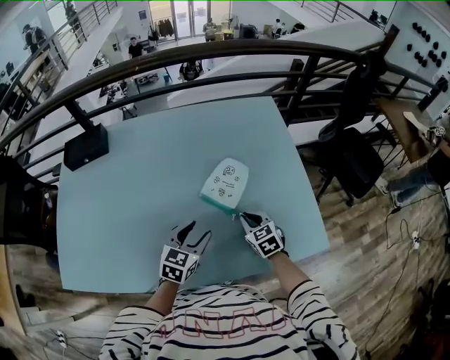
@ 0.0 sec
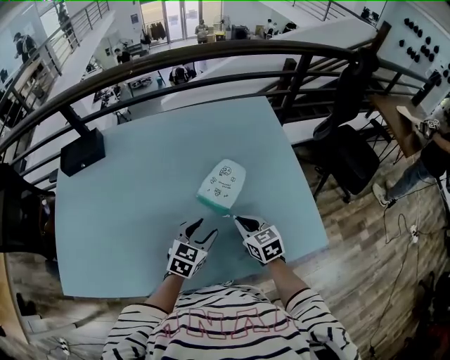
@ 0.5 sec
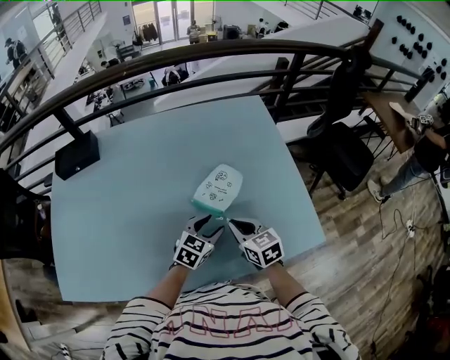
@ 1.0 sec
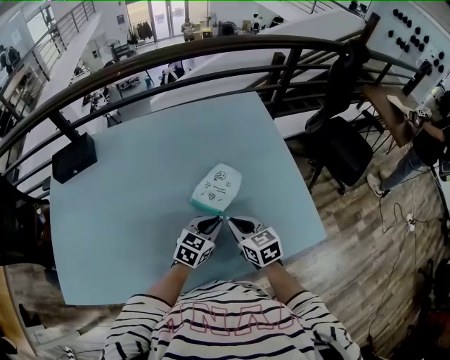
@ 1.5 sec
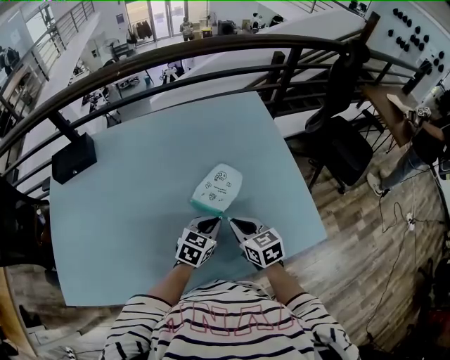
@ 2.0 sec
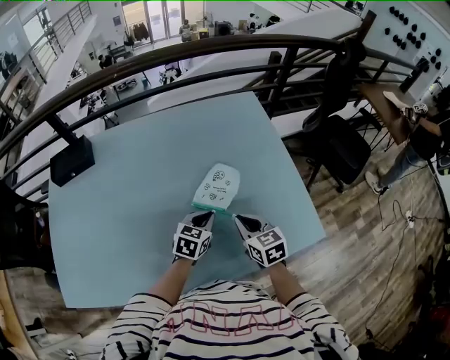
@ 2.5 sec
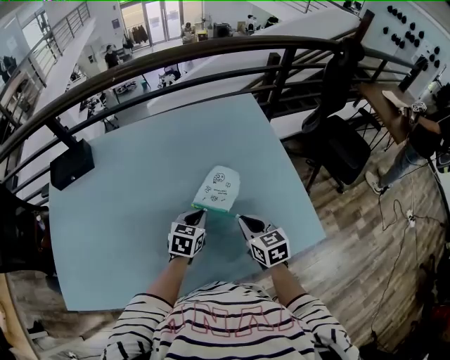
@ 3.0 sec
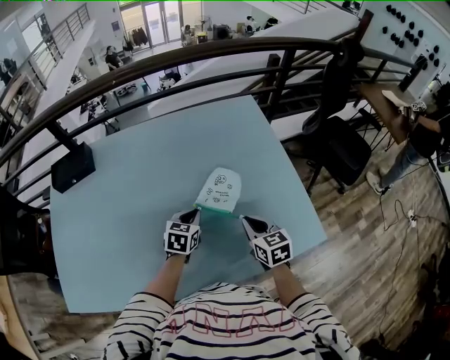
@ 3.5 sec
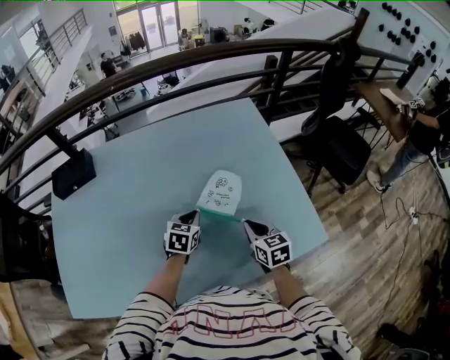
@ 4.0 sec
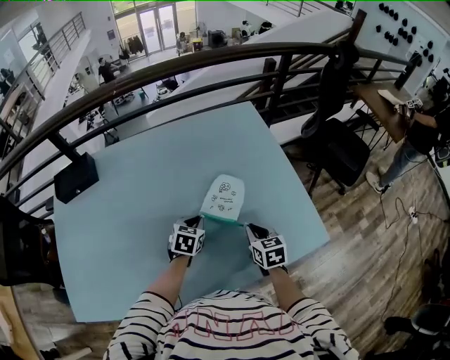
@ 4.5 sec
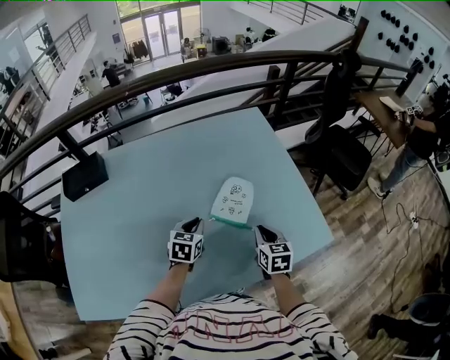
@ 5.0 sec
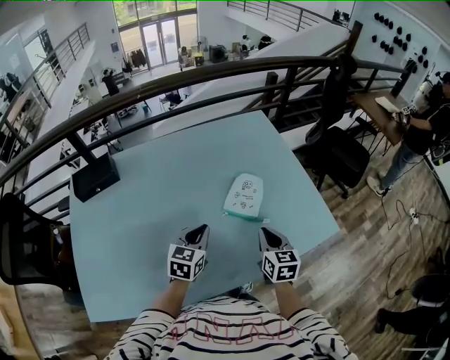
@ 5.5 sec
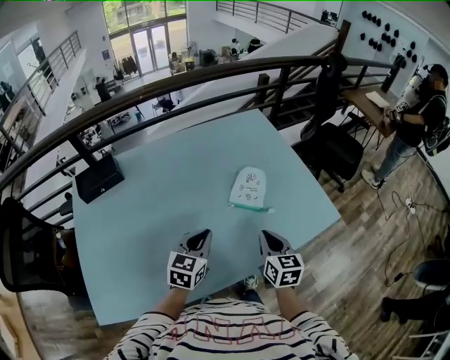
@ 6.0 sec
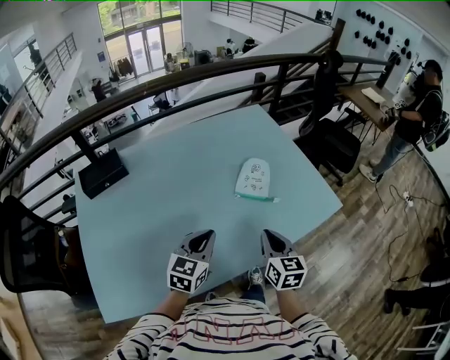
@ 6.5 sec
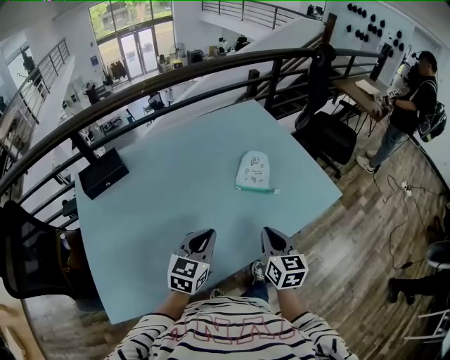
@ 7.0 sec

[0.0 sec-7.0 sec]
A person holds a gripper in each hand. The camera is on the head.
0.0 sec to 2.0 sec: The left gripper heads to the right, covering some 5 cm, and closes; the right gripper travels upward by roughly 5 cm.
2.0 sec to 3.5 sec: The right gripper ends up roughly 5 cm from where it was. Meanwhile the left gripper goes some 10 cm to the left and forward.
3.5 sec to 5.0 sec: The left gripper travels to the left by roughly 5 cm.
5.0 sec to 7.0 sec: The left gripper travels backward and upward by roughly 25 cm, and rotates approximately 30 degrees; the right gripper is displaced backward, to the left and upward by approximately 25 cm.

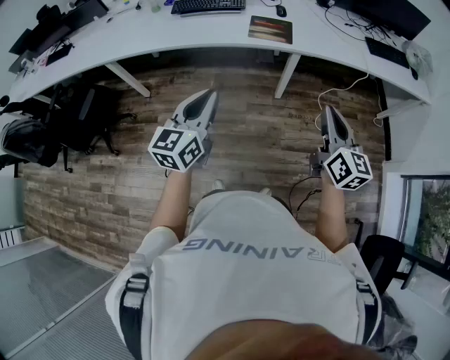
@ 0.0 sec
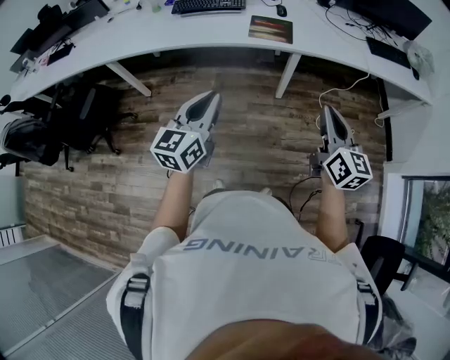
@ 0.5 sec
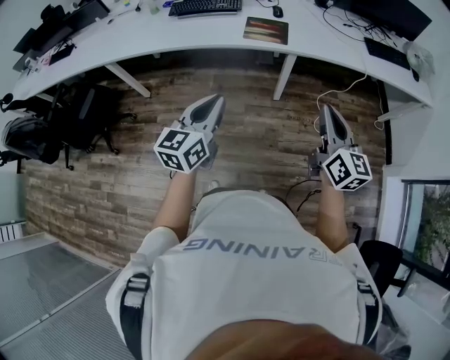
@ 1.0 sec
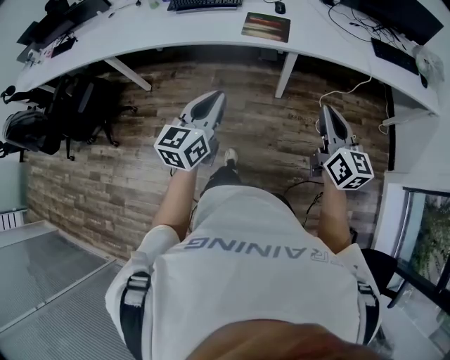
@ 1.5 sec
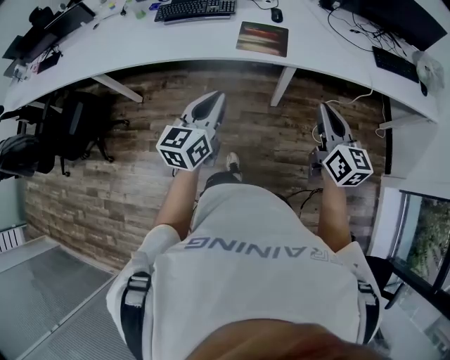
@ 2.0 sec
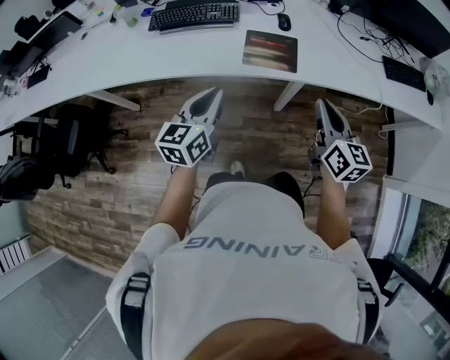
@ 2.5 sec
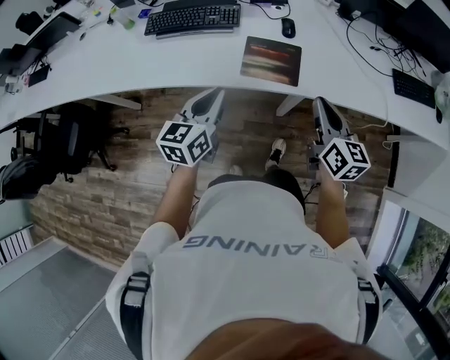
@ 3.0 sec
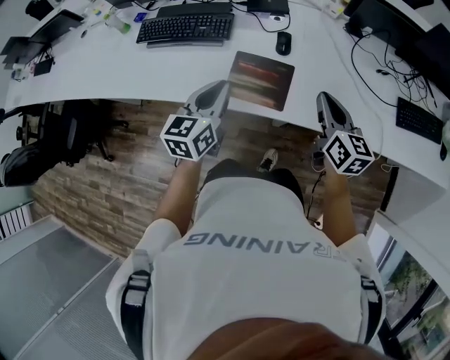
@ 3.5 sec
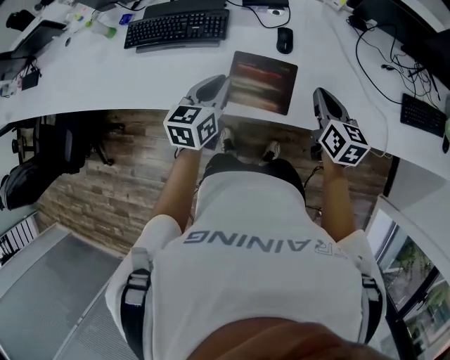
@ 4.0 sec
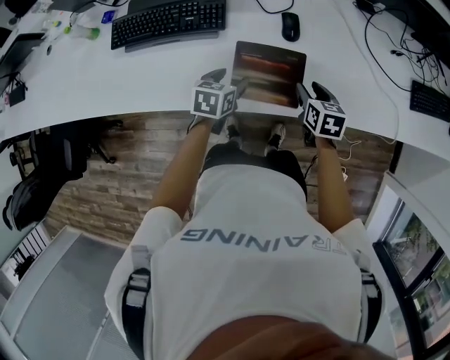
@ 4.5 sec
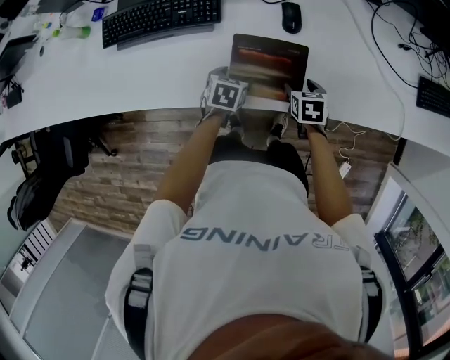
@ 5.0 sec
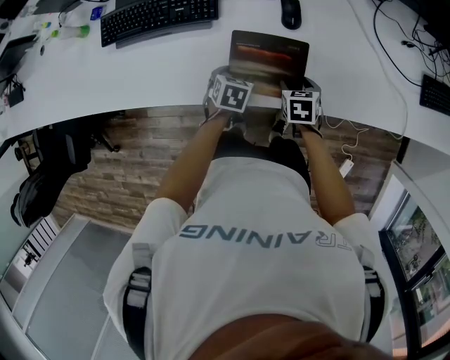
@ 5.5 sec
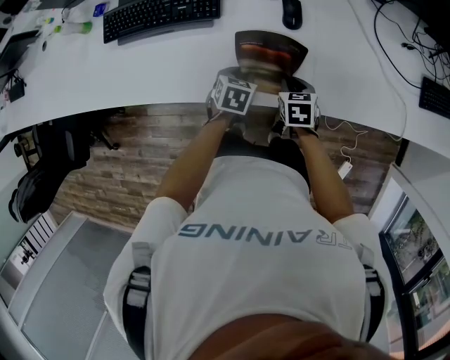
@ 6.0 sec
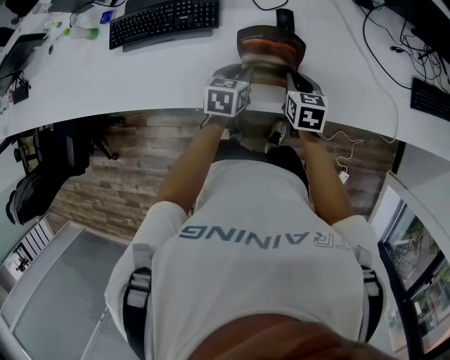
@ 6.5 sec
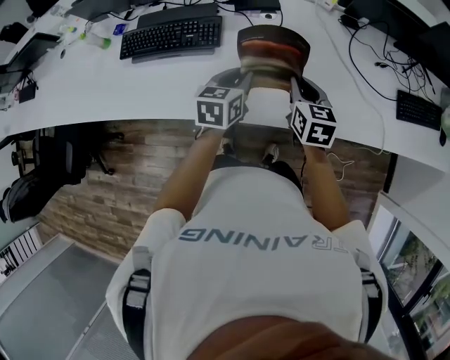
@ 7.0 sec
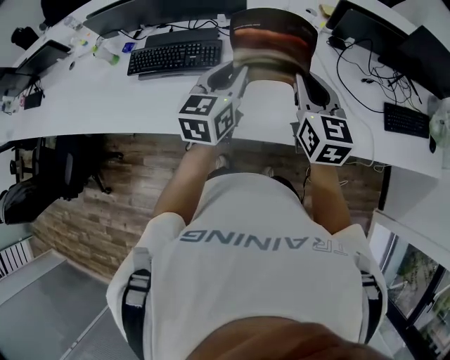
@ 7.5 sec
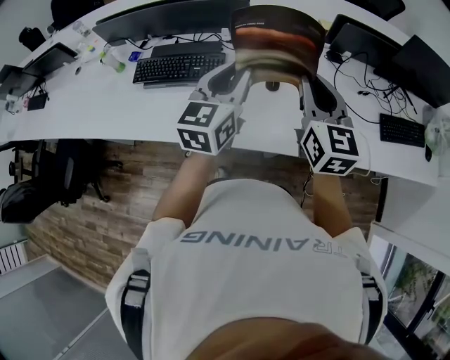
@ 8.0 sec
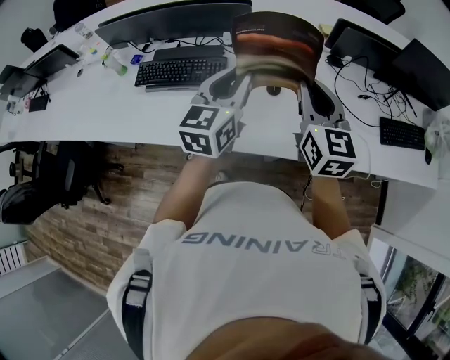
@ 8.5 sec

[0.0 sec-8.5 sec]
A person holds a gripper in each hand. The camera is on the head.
0.0 sec to 2.0 sec: The right gripper moves forward, approximately 20 cm, while the left gripper heads forward and to the right, covering some 20 cm.
2.0 sec to 4.0 sec: Both grippers are carried forward, roughly 40 cm. The right gripper swivels roughly 20 degrees.
4.0 sec to 6.5 sec: The left gripper shifts roughly 15 cm downward, rotates about 20 degrees, and opens, then closes again, while the right gripper goes about 15 cm downward and to the left, turns by roughly 20 degrees, and opens and closes again.
6.5 sec to 8.5 sec: The grippers both shift upward by approximately 35 cm. The left gripper tips its fingers upward by roughly 40 degrees. Meanwhile the right gripper tips its fingers upward by roughly 40 degrees.

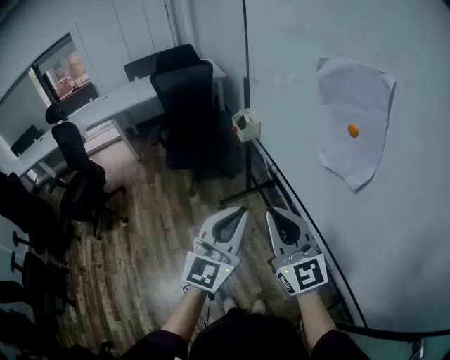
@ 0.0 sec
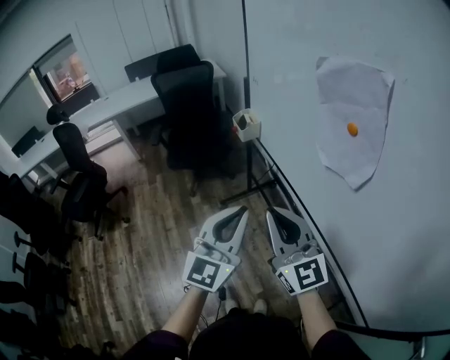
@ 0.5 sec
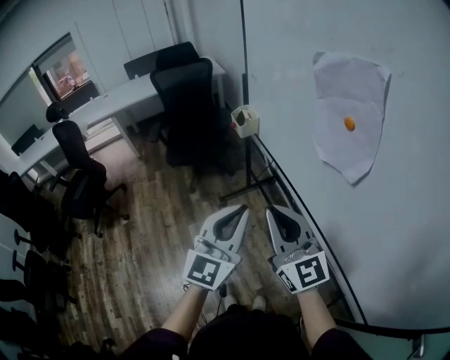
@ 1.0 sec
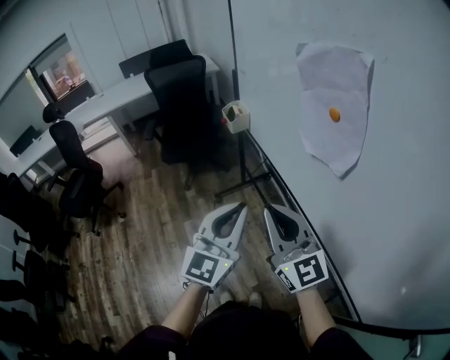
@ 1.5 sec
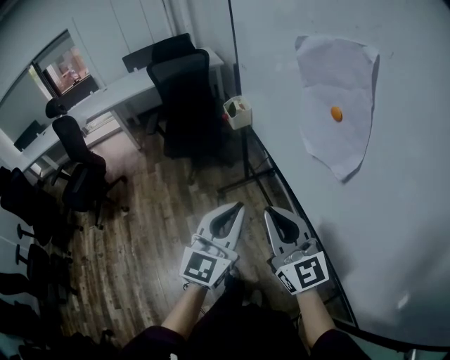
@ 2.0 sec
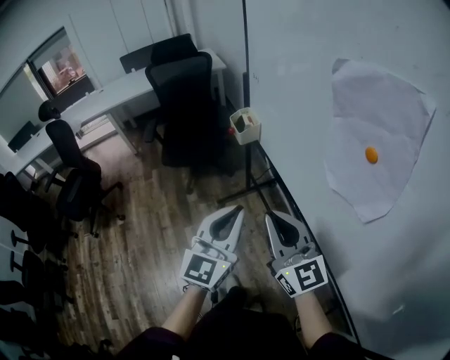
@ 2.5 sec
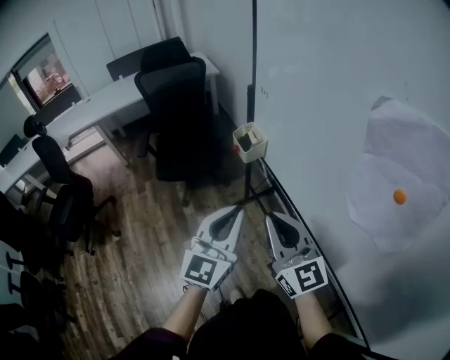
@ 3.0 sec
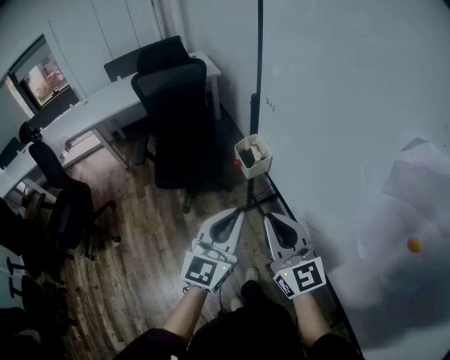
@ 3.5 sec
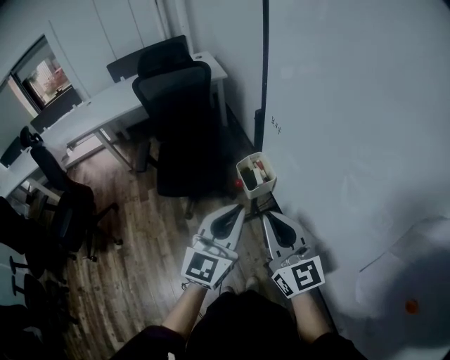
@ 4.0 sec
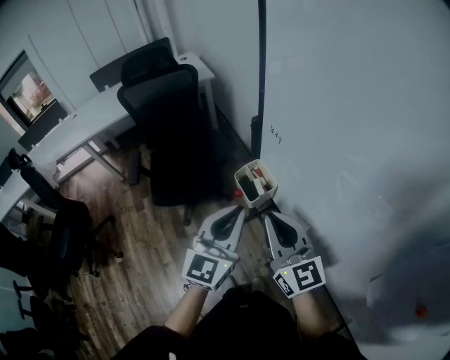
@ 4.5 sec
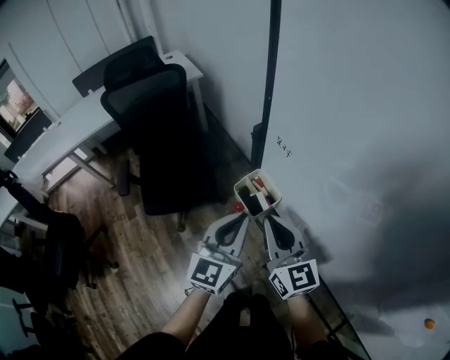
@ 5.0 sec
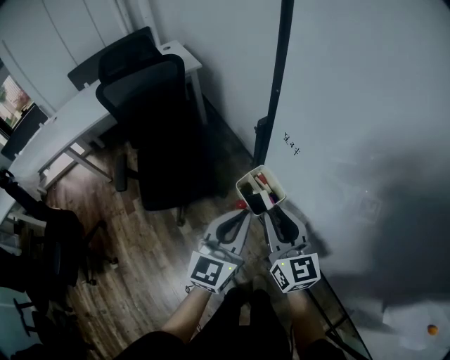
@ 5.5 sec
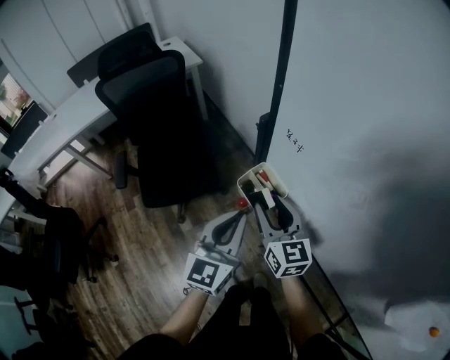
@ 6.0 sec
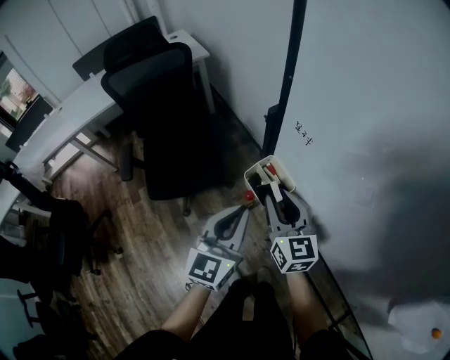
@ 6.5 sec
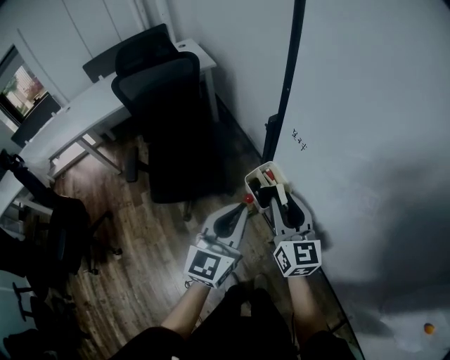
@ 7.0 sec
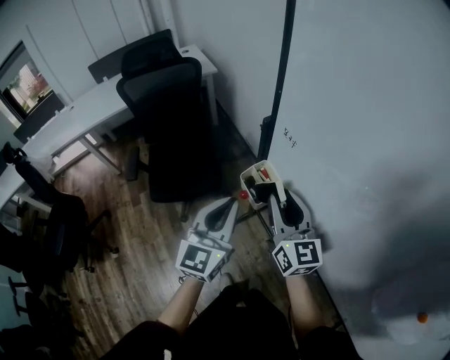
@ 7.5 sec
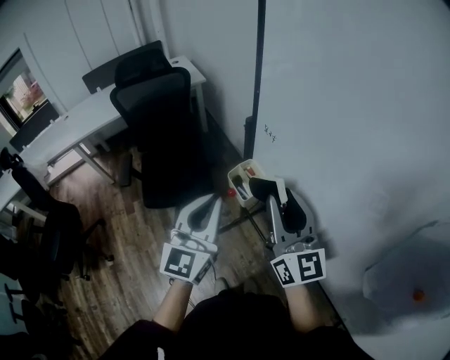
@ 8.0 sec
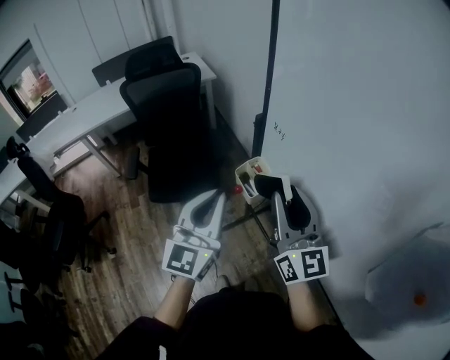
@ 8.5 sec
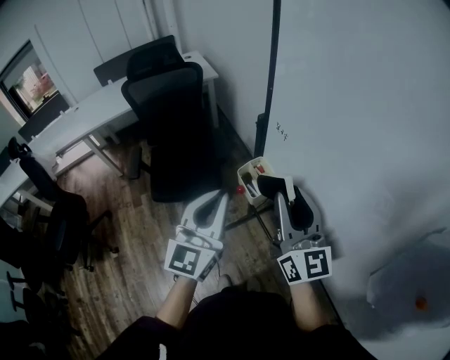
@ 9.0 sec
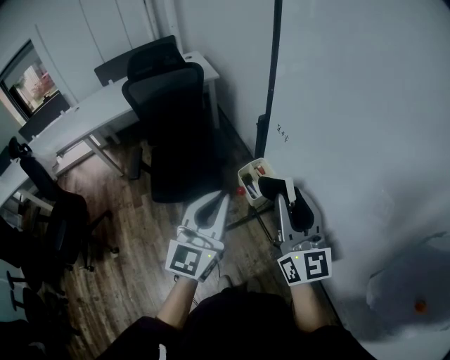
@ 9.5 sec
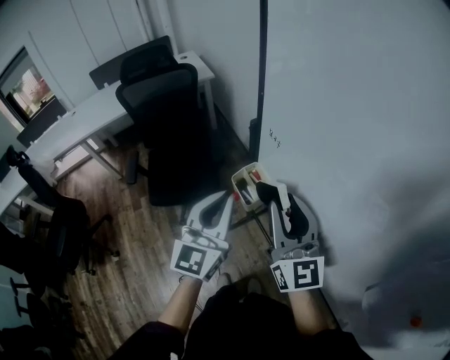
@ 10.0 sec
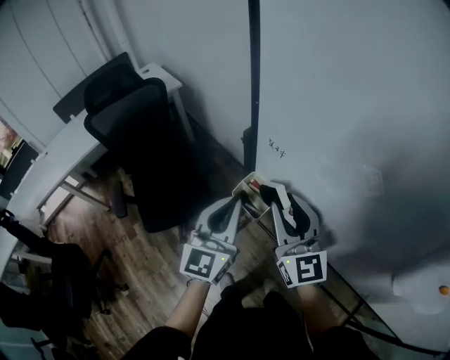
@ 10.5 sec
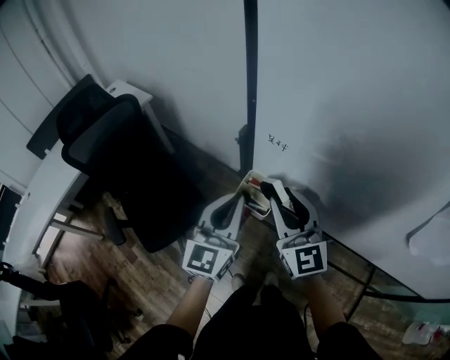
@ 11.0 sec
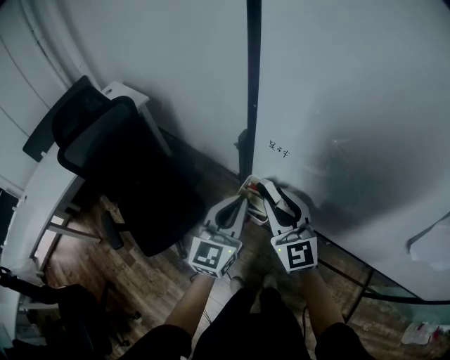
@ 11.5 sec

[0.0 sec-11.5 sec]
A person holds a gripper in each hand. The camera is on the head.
0.0 sec to 2.0 sec: The grippers both shift to the right by about 5 cm.
2.0 sec to 4.0 sec: The grippers both shift forward by approximately 40 cm.
4.0 sec to 6.0 sec: The right gripper is displaced forward and downward by approximately 20 cm, rotates some 20 degrees, and opens up, while the left gripper is displaced forward and downward by approximately 15 cm.
6.0 sec to 7.5 sec: The left gripper goes roughly 5 cm upward. The right gripper shifts some 10 cm upward.
7.5 sec to 9.5 sec: The right gripper travels upward and backward by approximately 10 cm. Meanwhile the left gripper goes some 5 cm upward.
9.5 sec to 11.5 sec: The right gripper travels downward, forward and to the left by some 15 cm, and rotates about 30 degrees. Meanwhile the left gripper goes some 15 cm forward and downward, and rotates about 30 degrees.
